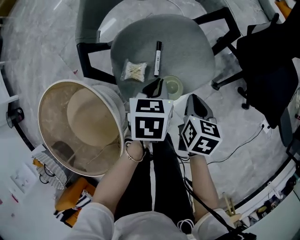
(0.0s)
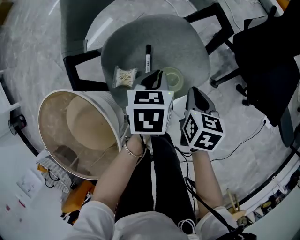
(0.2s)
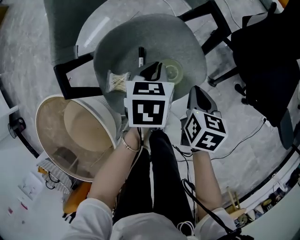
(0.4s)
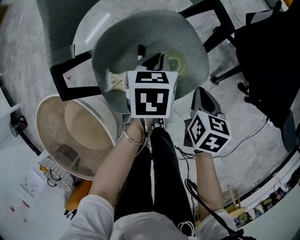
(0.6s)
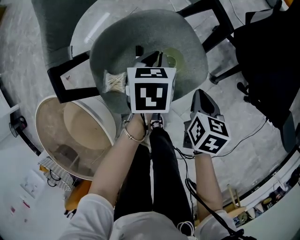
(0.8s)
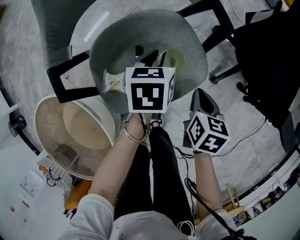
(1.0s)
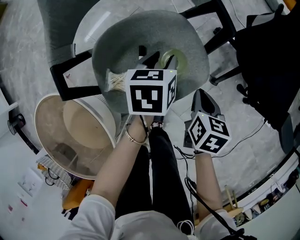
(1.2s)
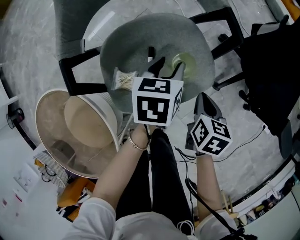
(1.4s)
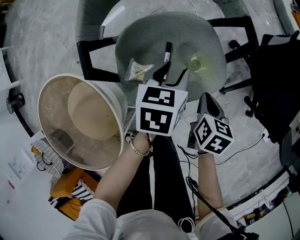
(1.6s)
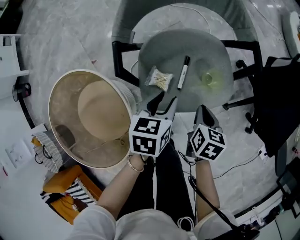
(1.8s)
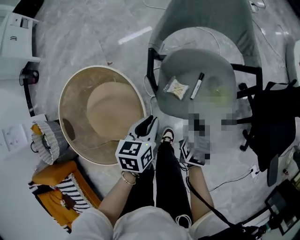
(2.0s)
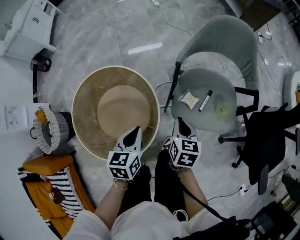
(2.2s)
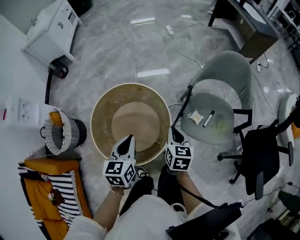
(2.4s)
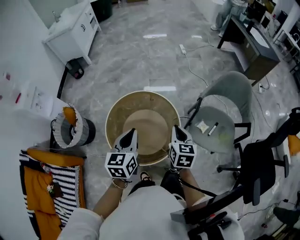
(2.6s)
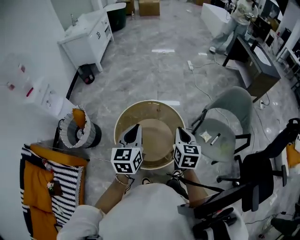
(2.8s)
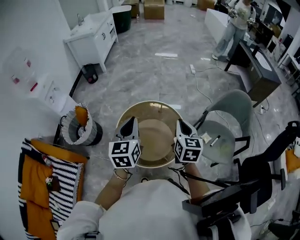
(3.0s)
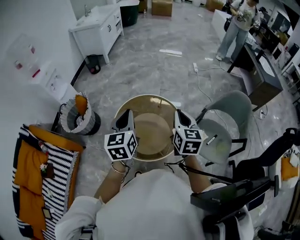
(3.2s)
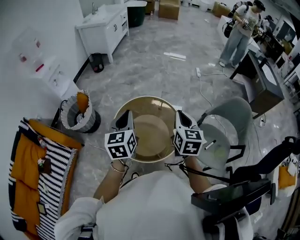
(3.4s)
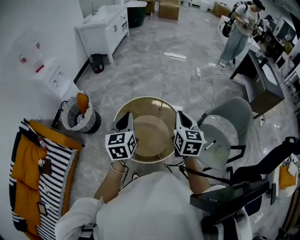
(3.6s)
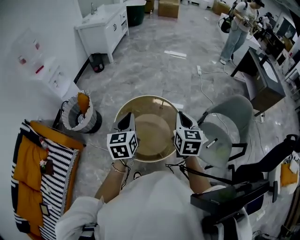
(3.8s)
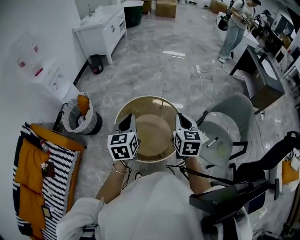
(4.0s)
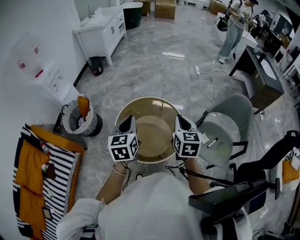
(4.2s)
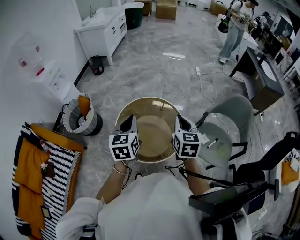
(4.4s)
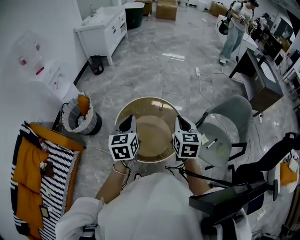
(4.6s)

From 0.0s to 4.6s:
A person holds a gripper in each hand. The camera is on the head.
From 0.0s to 1.6s: The left gripper goes about 5 cm forward, and opens its fingers.
From 1.6s to 3.0s: Both grippers are carried roughly 60 cm. The right gripper points its fingers some 30 degrees further upward. Meanwhile the left gripper angles its fingers upward, by about 30 degrees, and closes.
From 3.0s to 4.6s: The grippers stay close to where they were, moving slightly.

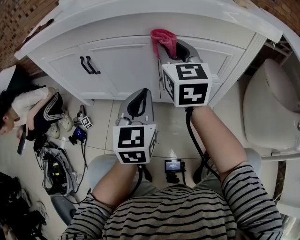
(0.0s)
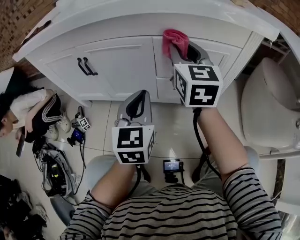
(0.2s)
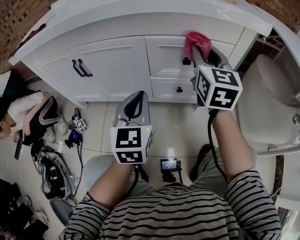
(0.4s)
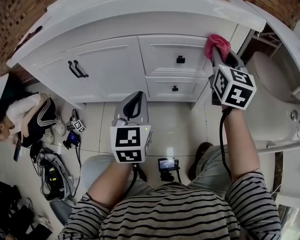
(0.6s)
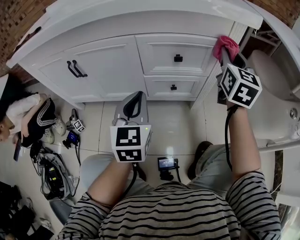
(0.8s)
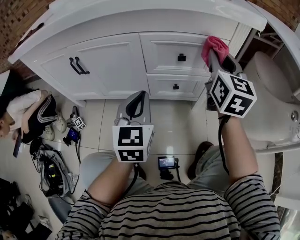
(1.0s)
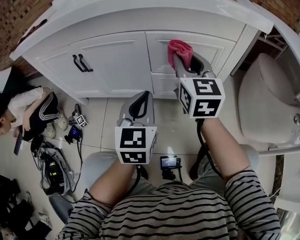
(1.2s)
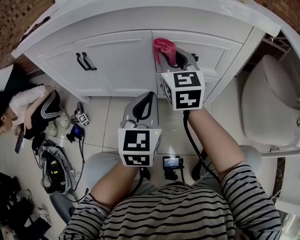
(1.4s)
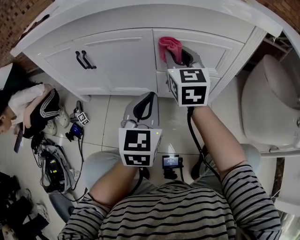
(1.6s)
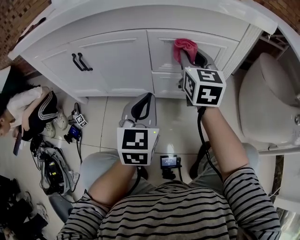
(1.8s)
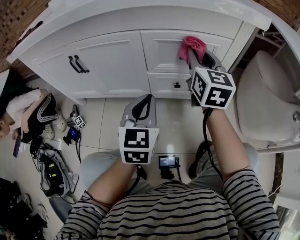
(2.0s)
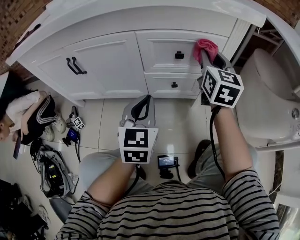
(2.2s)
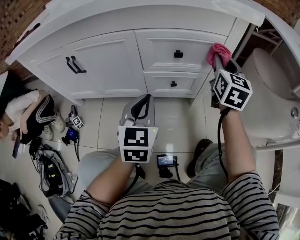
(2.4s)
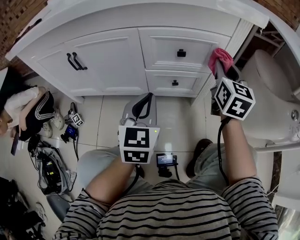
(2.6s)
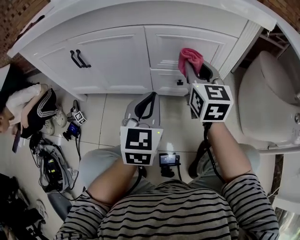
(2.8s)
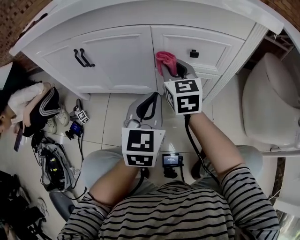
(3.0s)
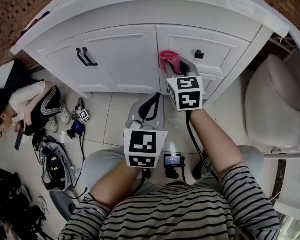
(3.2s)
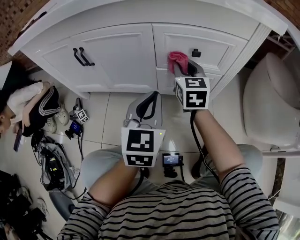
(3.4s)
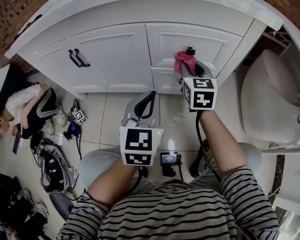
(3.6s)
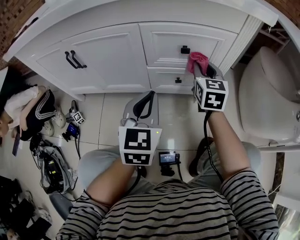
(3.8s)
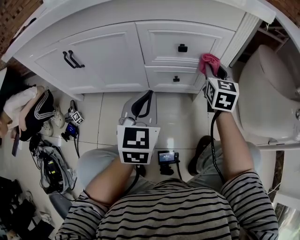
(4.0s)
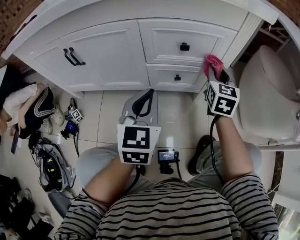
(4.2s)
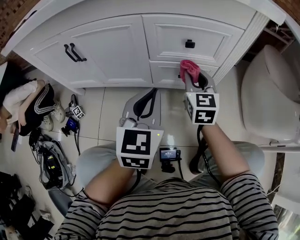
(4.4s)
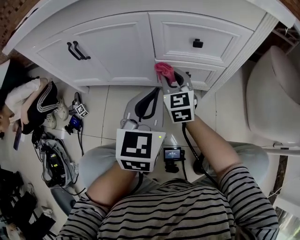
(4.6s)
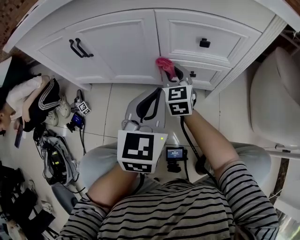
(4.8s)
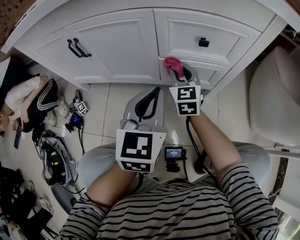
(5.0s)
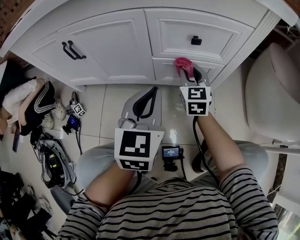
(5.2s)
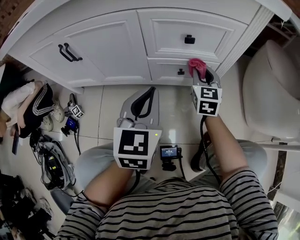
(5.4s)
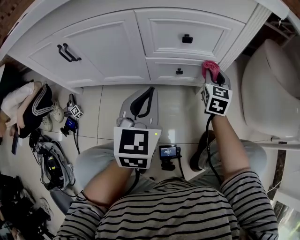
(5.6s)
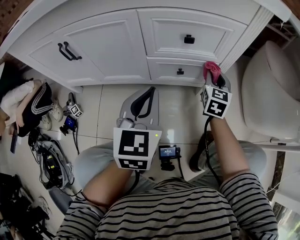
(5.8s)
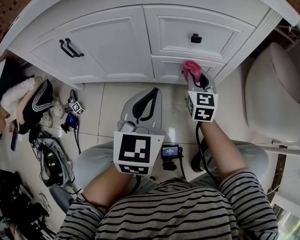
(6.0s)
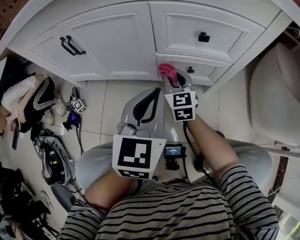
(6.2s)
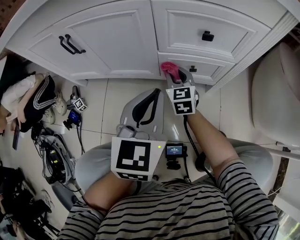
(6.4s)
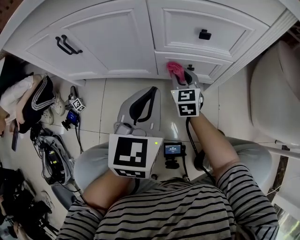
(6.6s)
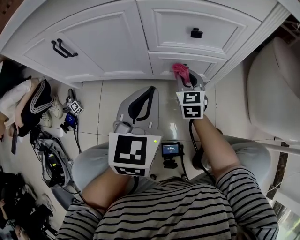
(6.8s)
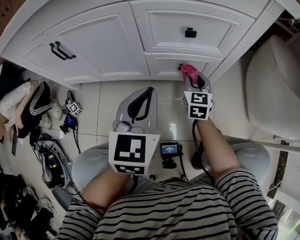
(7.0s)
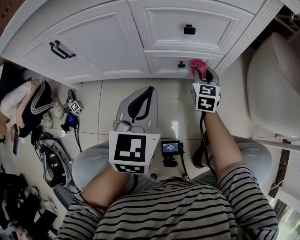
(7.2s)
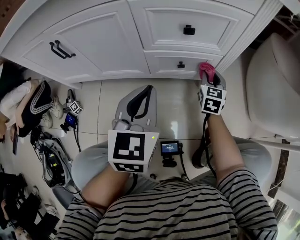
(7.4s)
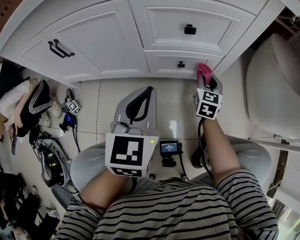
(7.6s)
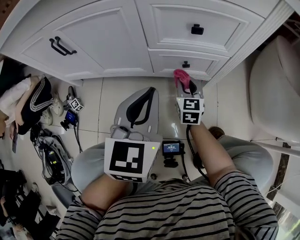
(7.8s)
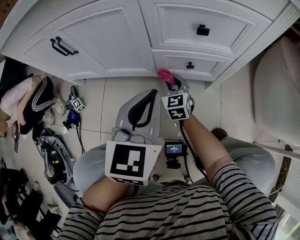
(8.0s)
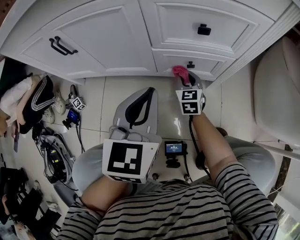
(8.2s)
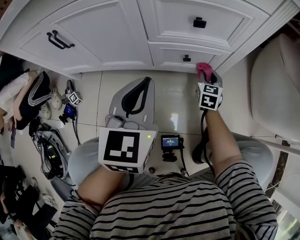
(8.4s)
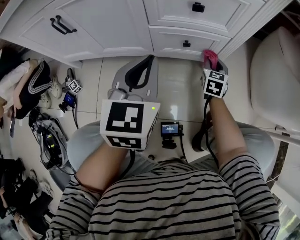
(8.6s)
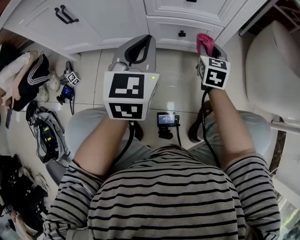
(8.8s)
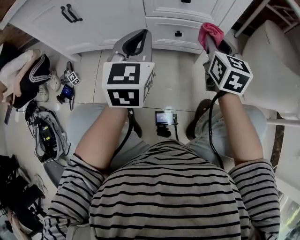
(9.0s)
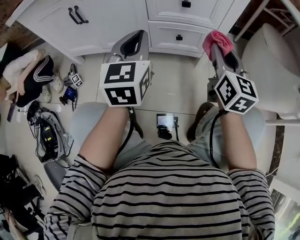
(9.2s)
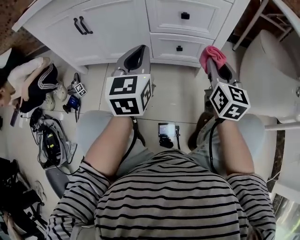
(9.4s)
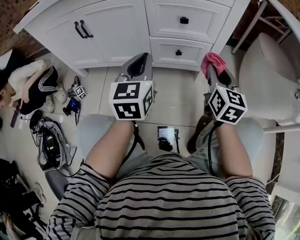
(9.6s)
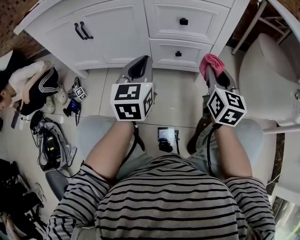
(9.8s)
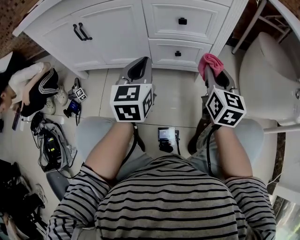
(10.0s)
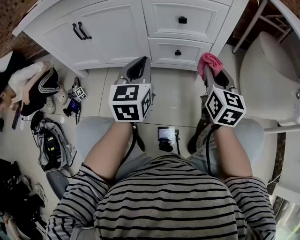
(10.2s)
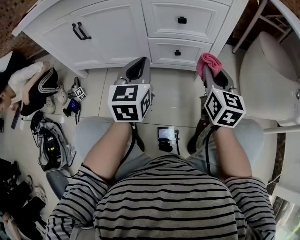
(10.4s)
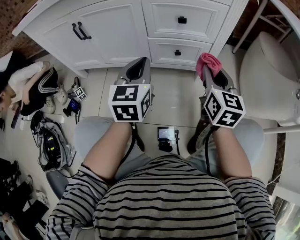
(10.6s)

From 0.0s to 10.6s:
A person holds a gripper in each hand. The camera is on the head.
From 0.0s to 1.6s: The right gripper is displaced downward by approximately 5 cm, and moves approximately 25 cm to the right and comes back.
From 1.6s to 3.0s: The right gripper travels downward by about 5 cm, and goes to the right and returns, approximately 20 cm each way.
From 3.0s to 4.6s: The right gripper goes roughly 10 cm downward, and goes to the right and returns, roughly 20 cm each way.
From 4.6s to 6.0s: The right gripper goes some 10 cm to the right.
From 6.0s to 7.6s: The right gripper goes roughly 10 cm downward and to the right.
From 7.6s to 9.0s: The right gripper goes roughly 20 cm upward and backward.
From 9.0s to 10.6s: The right gripper heads backward, covering roughly 5 cm.

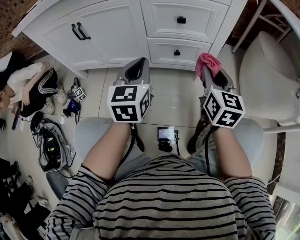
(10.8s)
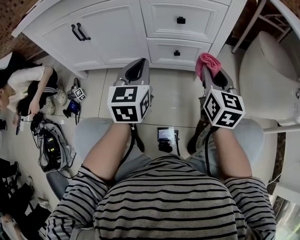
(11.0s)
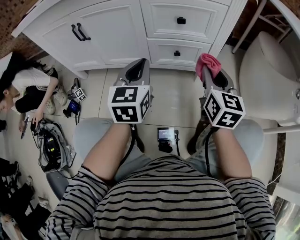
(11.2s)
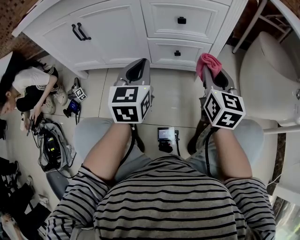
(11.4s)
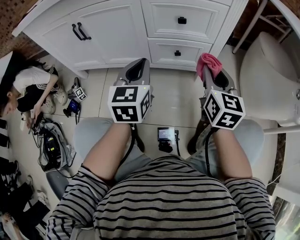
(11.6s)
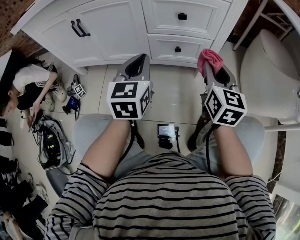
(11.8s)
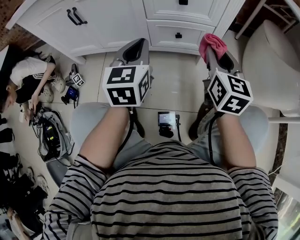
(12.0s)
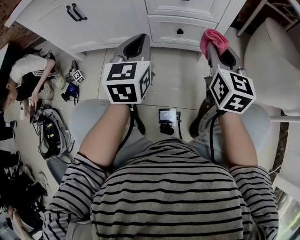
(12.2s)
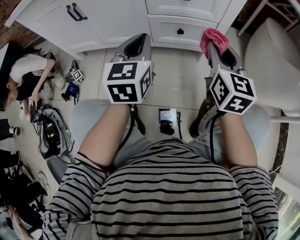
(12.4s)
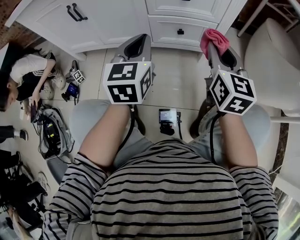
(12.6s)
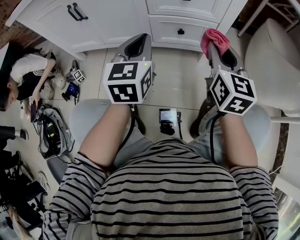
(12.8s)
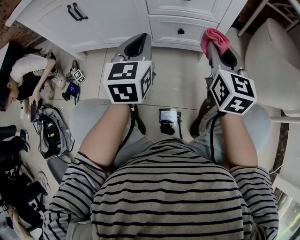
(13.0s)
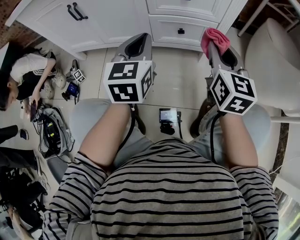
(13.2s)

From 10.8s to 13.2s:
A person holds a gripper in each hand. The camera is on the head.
From 10.8s to 12.0s: Both grippers stay put.
From 12.0s to 13.2s: Both grippers stay about where they are.

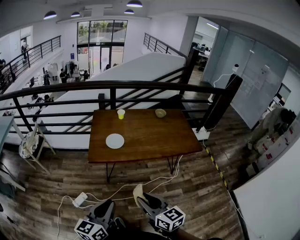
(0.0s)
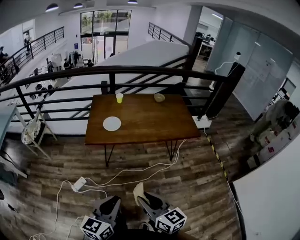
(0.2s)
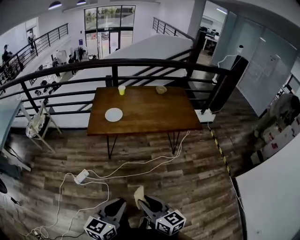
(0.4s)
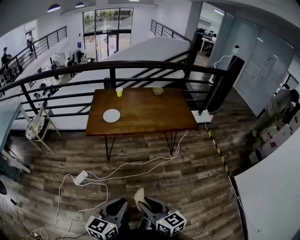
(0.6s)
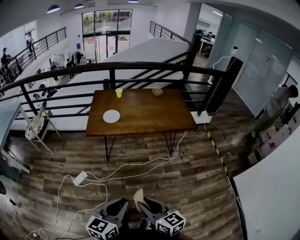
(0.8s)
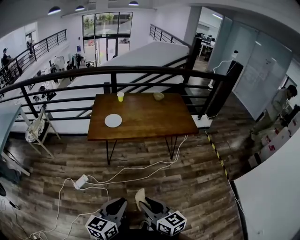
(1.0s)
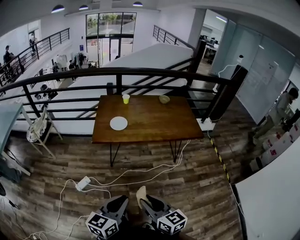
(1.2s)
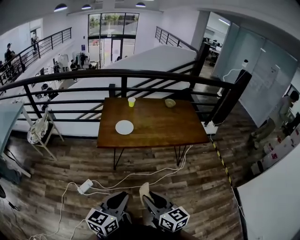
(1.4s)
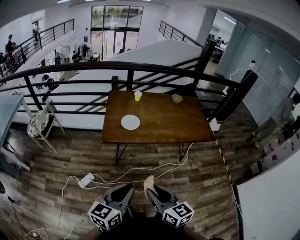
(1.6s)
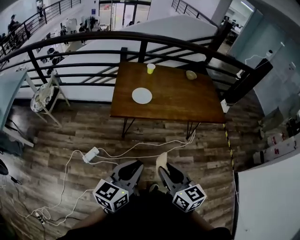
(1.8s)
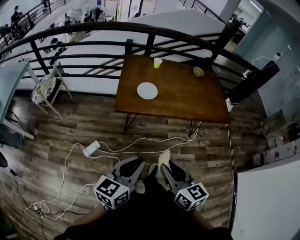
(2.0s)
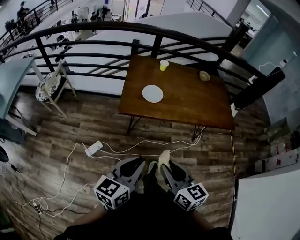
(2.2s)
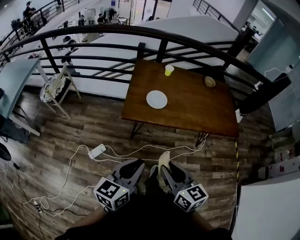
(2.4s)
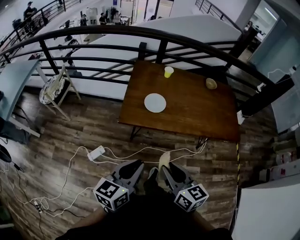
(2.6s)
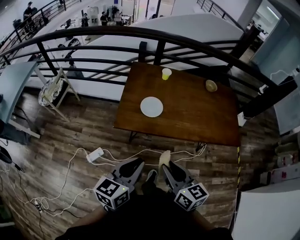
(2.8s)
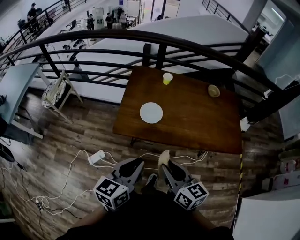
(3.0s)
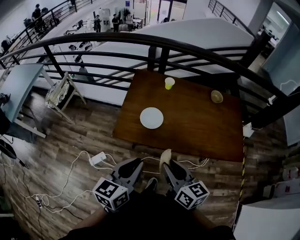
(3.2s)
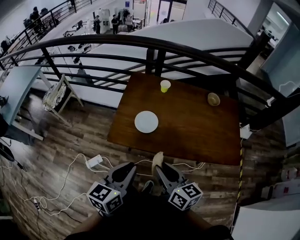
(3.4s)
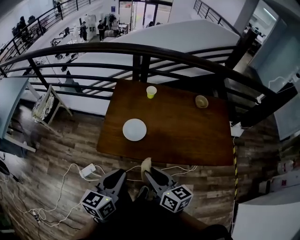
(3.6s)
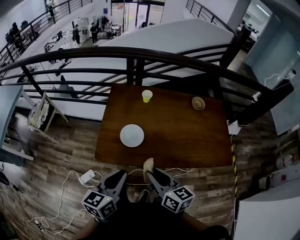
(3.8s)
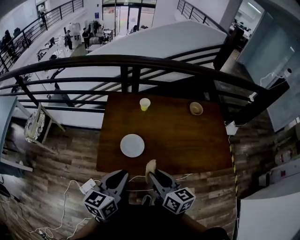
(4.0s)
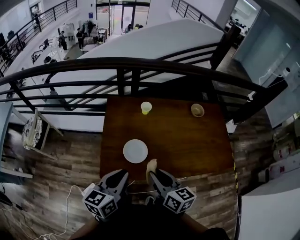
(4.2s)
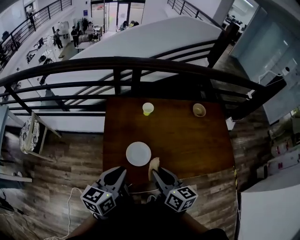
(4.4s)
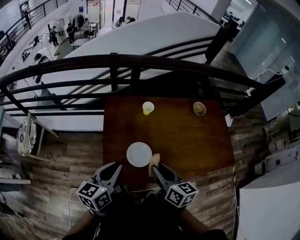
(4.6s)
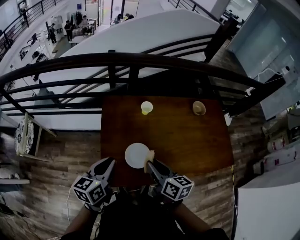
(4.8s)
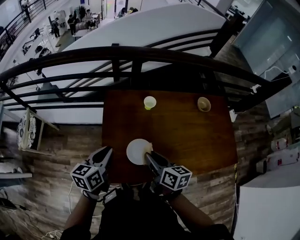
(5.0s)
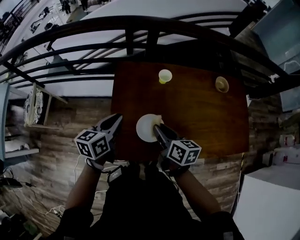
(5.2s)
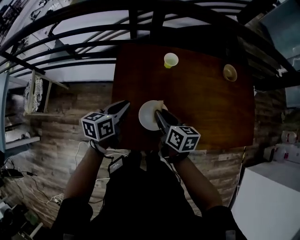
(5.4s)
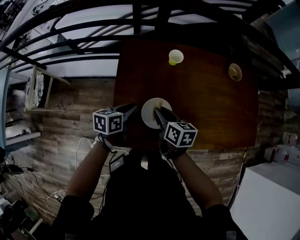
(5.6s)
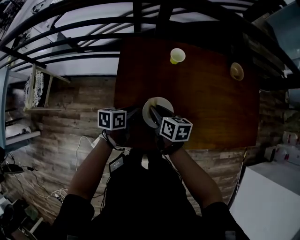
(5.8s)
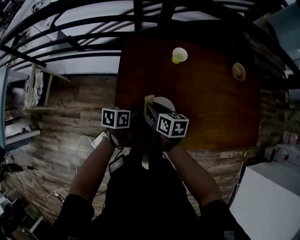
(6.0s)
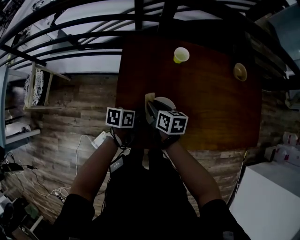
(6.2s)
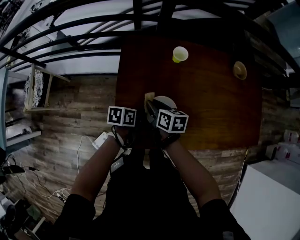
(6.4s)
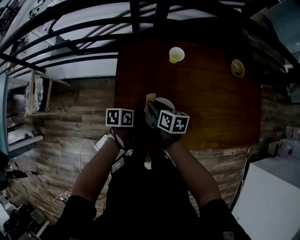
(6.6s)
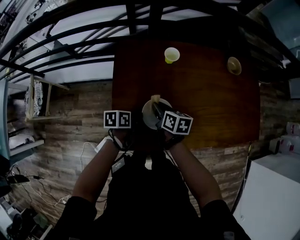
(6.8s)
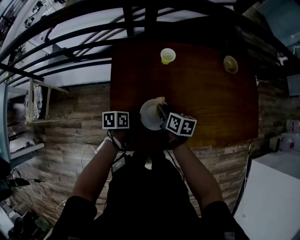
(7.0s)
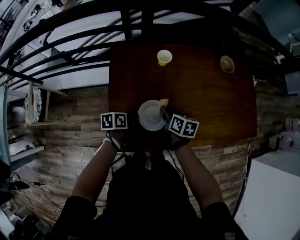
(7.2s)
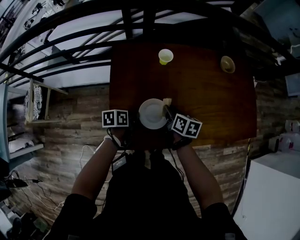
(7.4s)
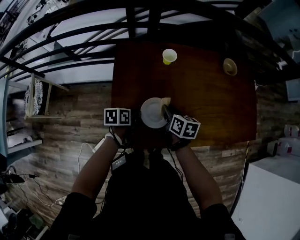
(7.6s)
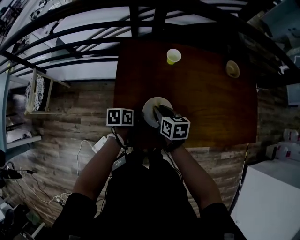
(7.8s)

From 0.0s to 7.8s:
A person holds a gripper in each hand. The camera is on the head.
From 0.0s to 1.6s: The right gripper goes backward and returns, approximately 20 cm each way. Meanwhile the left gripper moves roughly 15 cm backward and comes back.
From 1.6s to 3.2s: The grippers both shift forward by approximately 35 cm.
From 3.2s to 4.6s: The left gripper heads forward and to the left, covering some 30 cm, while the right gripper goes approximately 25 cm forward, and changes its angle by about 20 degrees.
From 4.6s to 6.2s: The left gripper shifts roughly 30 cm downward, and changes its angle by about 40 degrees; the right gripper travels downward, forward and to the left by some 30 cm, and rotates about 20 degrees.
From 6.2s to 7.8s: The right gripper travels to the right by about 5 cm.
